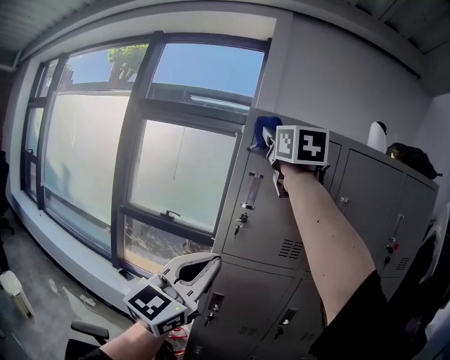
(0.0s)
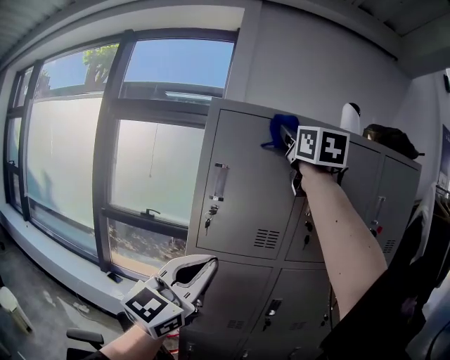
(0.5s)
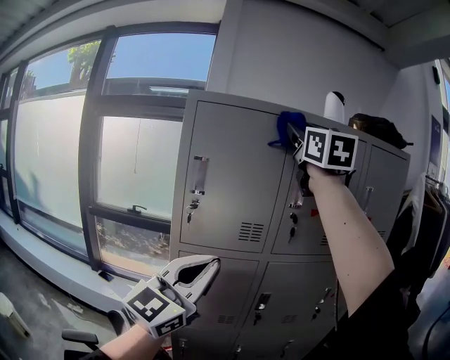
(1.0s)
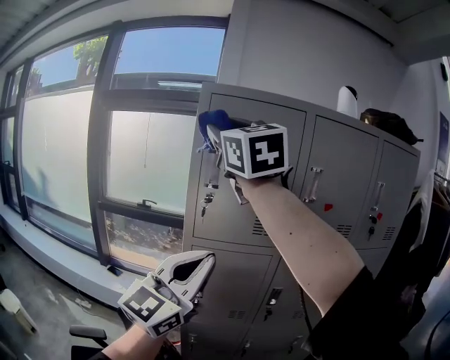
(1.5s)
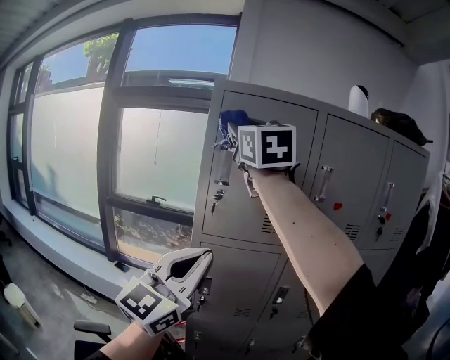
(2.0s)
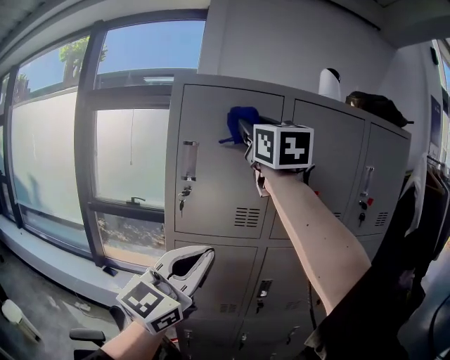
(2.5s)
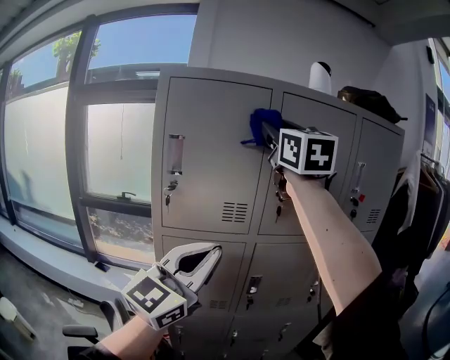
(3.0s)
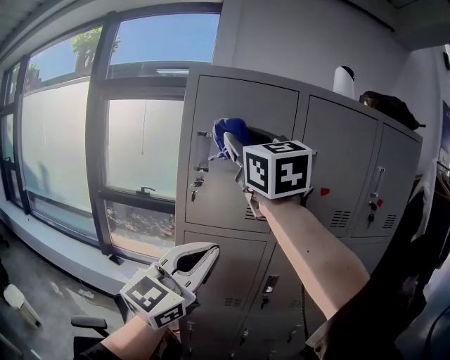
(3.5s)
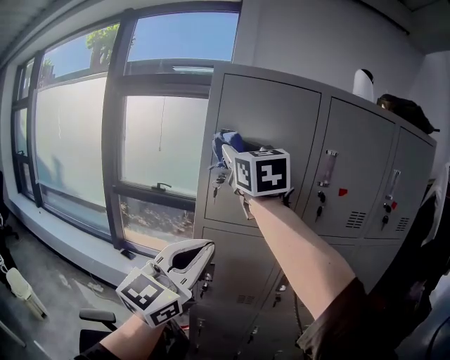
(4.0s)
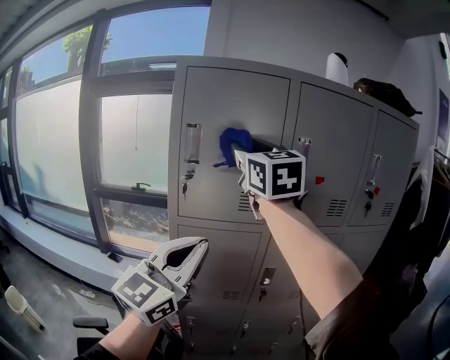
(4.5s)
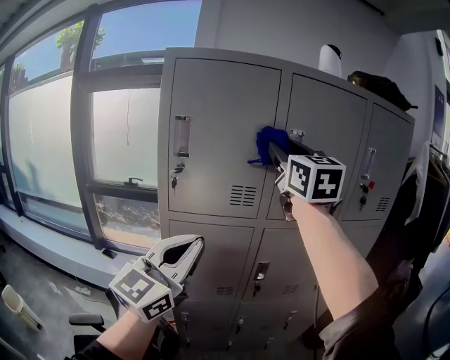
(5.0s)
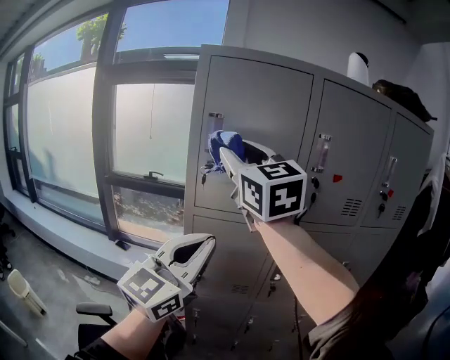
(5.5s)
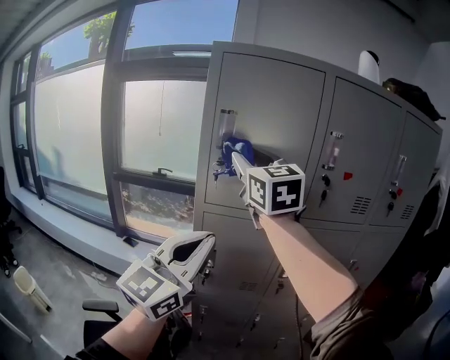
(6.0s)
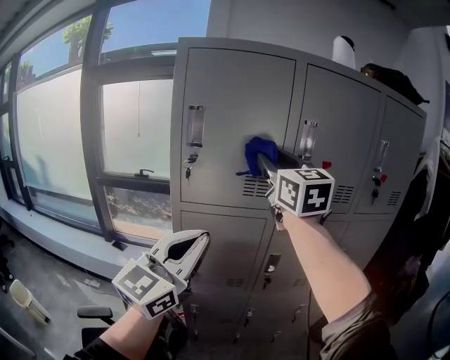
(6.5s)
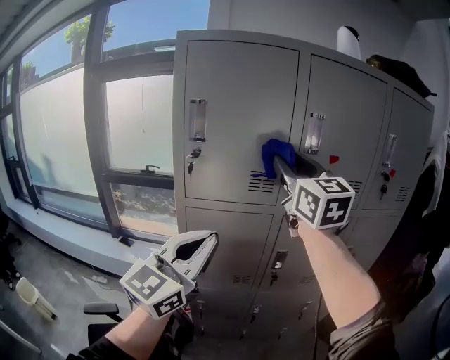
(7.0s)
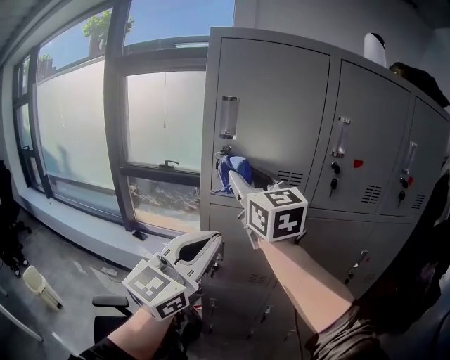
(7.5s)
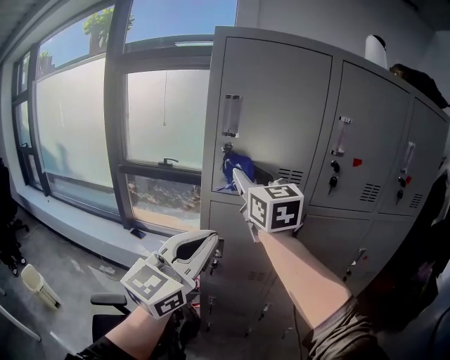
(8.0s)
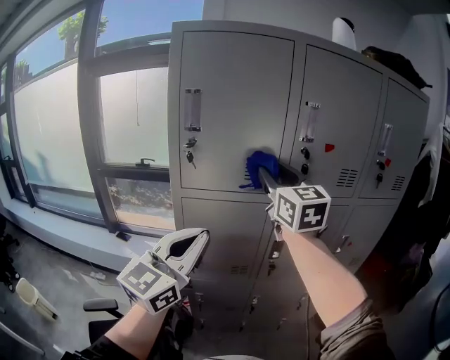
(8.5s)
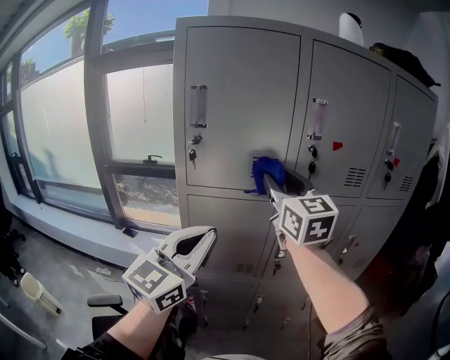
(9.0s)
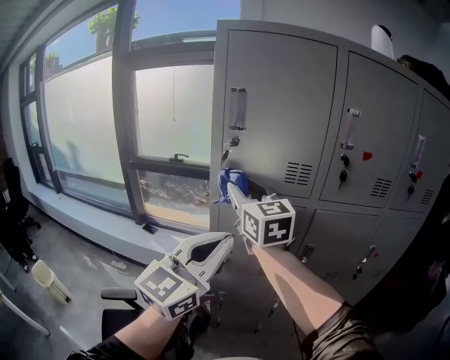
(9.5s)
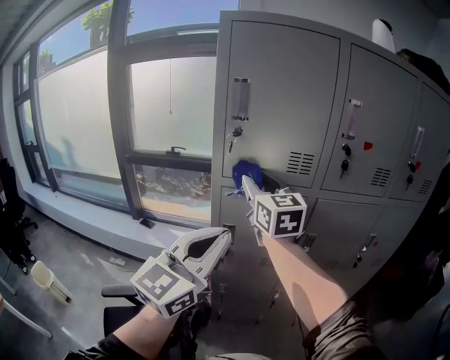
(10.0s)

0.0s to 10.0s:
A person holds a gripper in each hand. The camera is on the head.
0.0s to 2.0s: The right gripper shifts roughly 5 cm downward, and goes to the right and returns, some 20 cm each way.
2.0s to 4.0s: The left gripper goes to the right and returns, some 10 cm each way; the right gripper shifts approximately 10 cm downward, and reaches approximately 20 cm to the right, then returns.
4.0s to 6.0s: The right gripper travels downward by about 5 cm, and travels to the right and back again, about 20 cm each way.
6.0s to 8.0s: The right gripper shifts about 10 cm downward, and travels to the right and back again, roughly 15 cm each way.
8.0s to 10.0s: The right gripper travels downward by roughly 5 cm, and moves roughly 15 cm to the right and comes back.

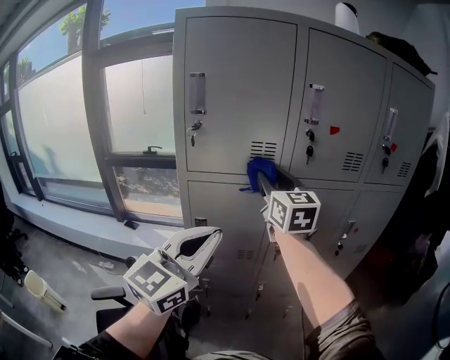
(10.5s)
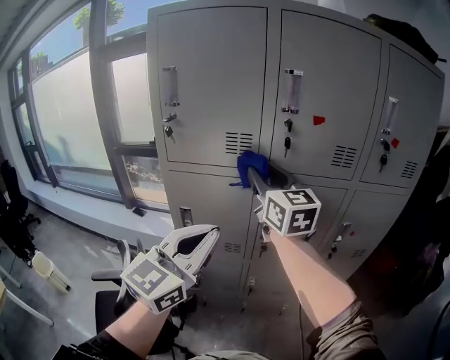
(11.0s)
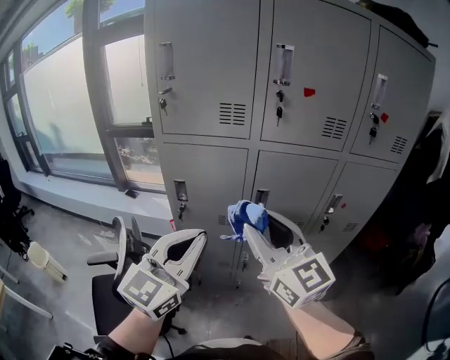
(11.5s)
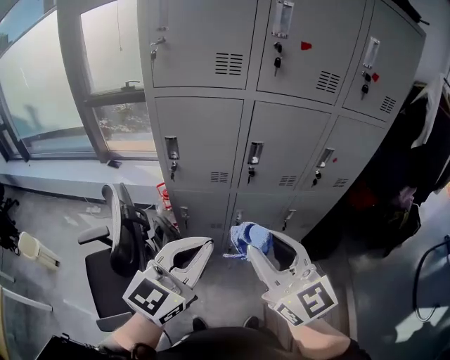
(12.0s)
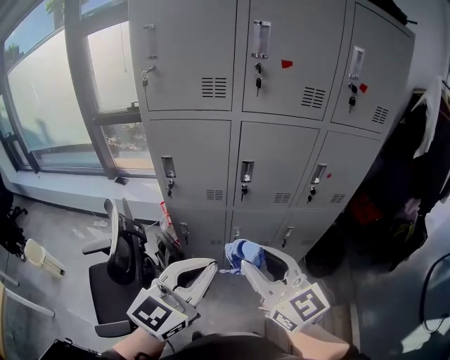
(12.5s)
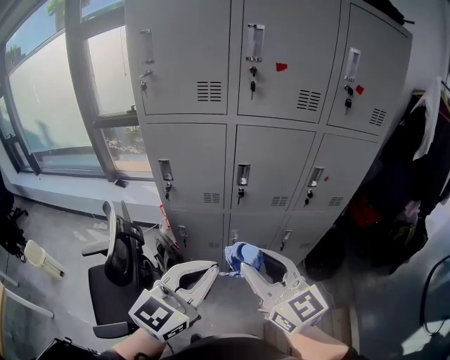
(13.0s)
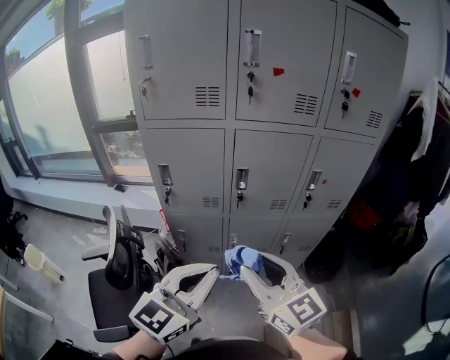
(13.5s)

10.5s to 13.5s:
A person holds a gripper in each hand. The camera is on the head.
10.5s to 12.0s: The left gripper is displaced backward, downward and to the right by approximately 20 cm. Meanwhile the right gripper is displaced backward and downward by roughly 35 cm.
12.0s to 13.5s: The grippers both shift to the right by approximately 5 cm.

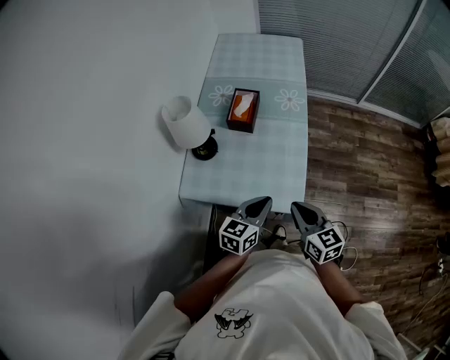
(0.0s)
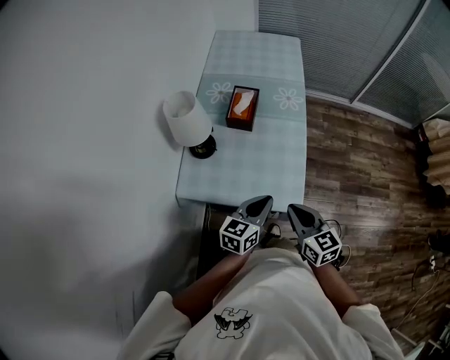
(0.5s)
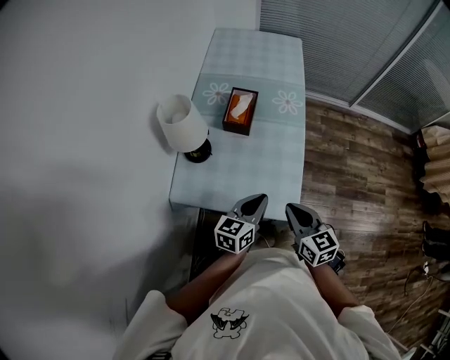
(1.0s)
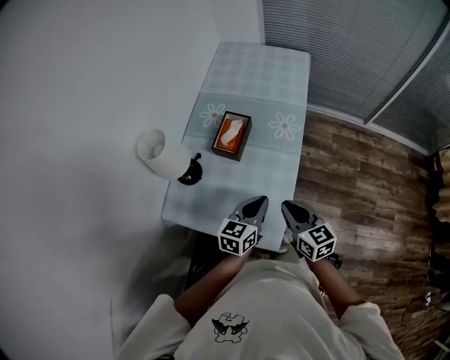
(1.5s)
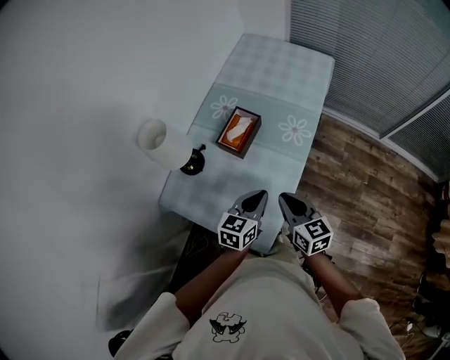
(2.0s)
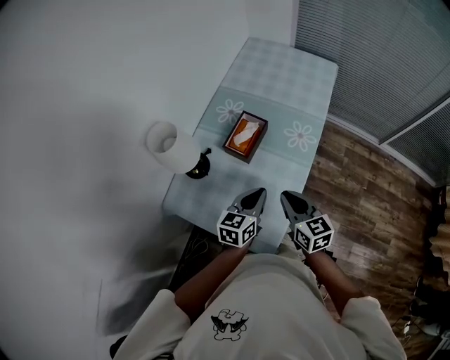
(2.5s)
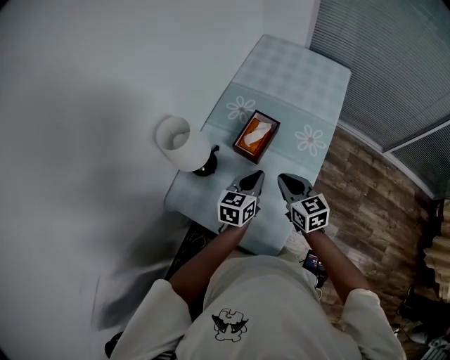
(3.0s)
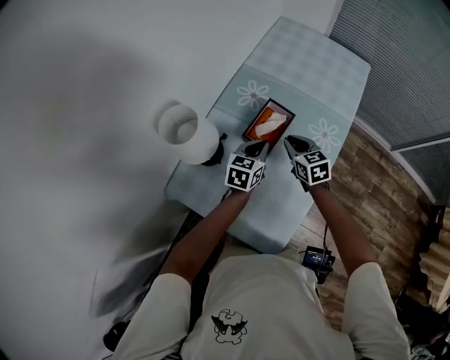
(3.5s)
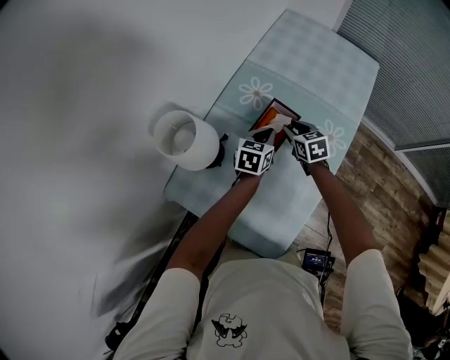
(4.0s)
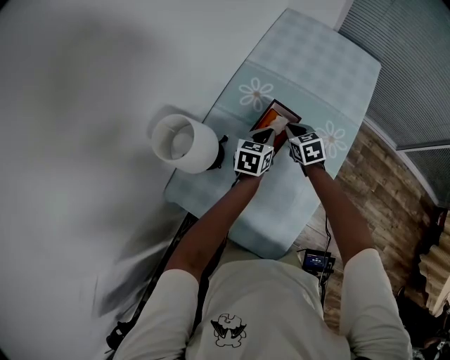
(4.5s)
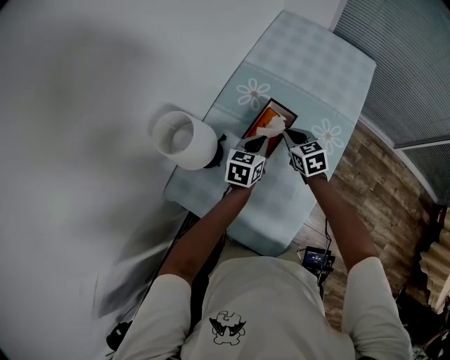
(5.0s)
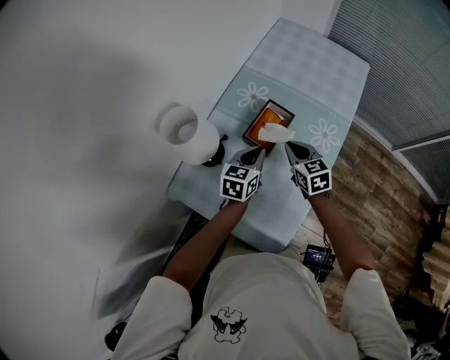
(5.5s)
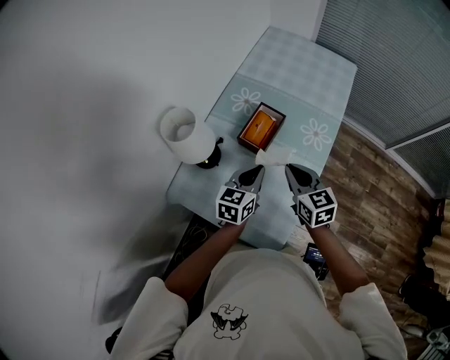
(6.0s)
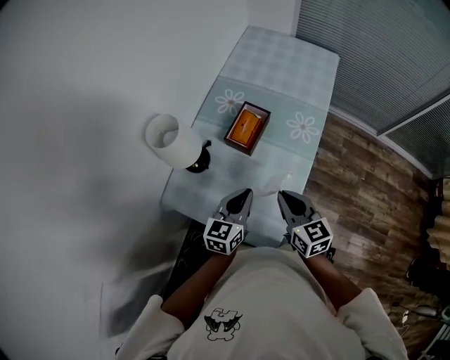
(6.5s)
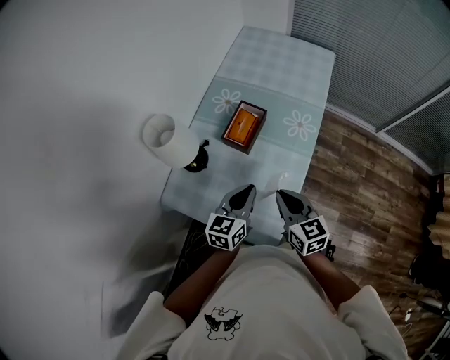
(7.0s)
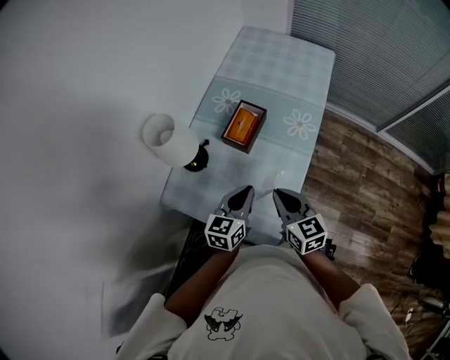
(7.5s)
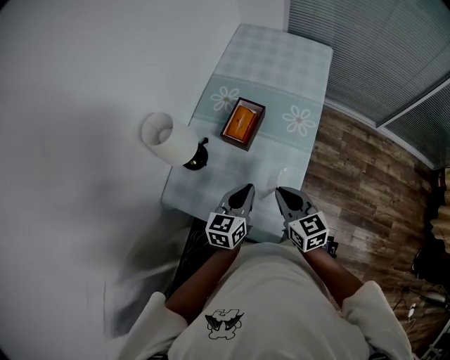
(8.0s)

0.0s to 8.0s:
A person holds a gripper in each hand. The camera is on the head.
0.0s to 2.0s: The right gripper goes approximately 20 cm forward; the left gripper goes approximately 20 cm forward and to the right.
2.0s to 4.0s: The two grippers go about 30 cm forward and downward. The right gripper rotates about 20 degrees, and opens its fingers.
4.0s to 6.0s: The two grippers go about 25 cm backward and upward. The right gripper closes.
6.0s to 8.0s: Both grippers travel together backward, some 10 cm.

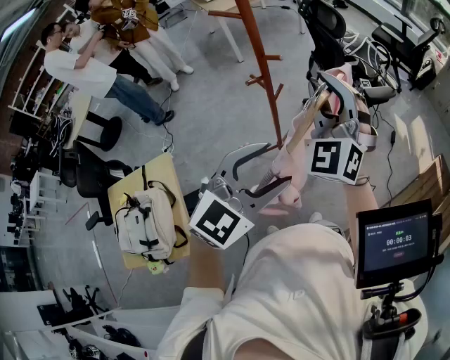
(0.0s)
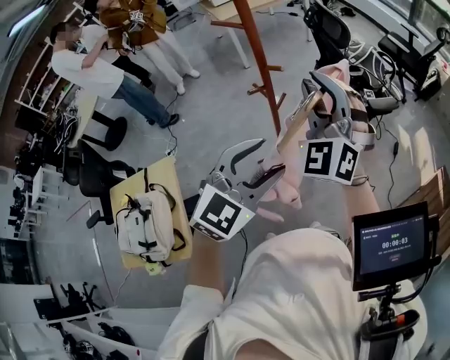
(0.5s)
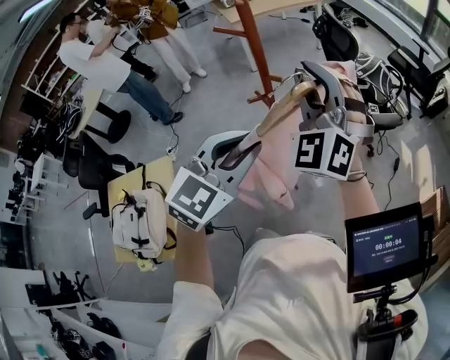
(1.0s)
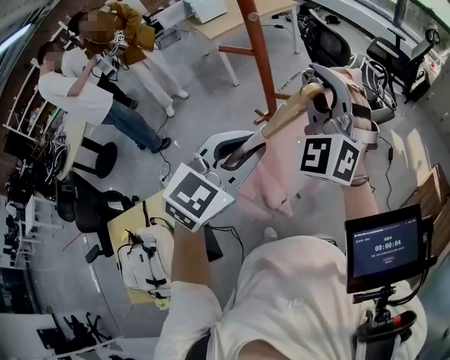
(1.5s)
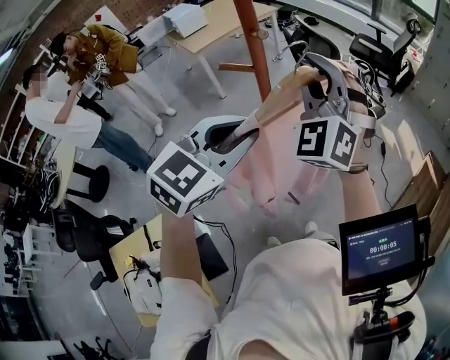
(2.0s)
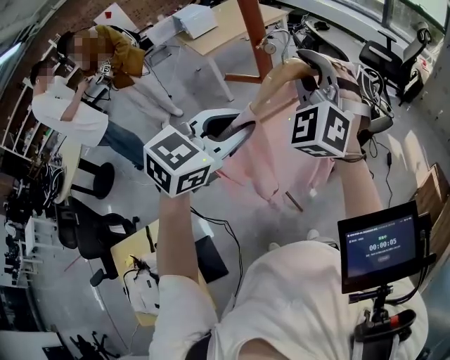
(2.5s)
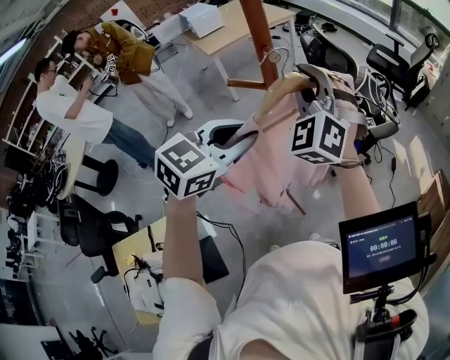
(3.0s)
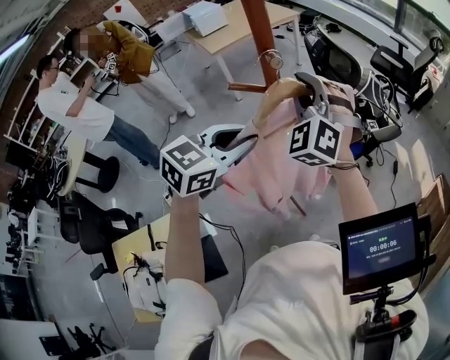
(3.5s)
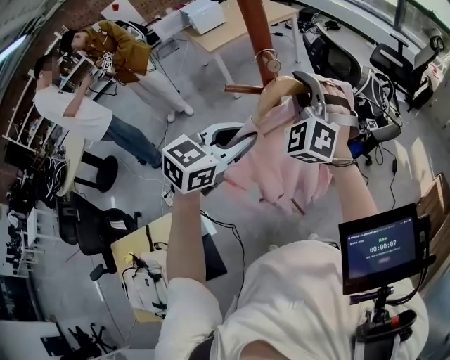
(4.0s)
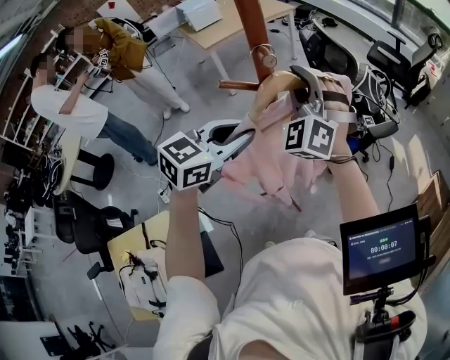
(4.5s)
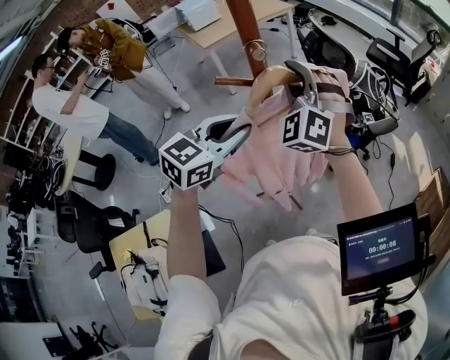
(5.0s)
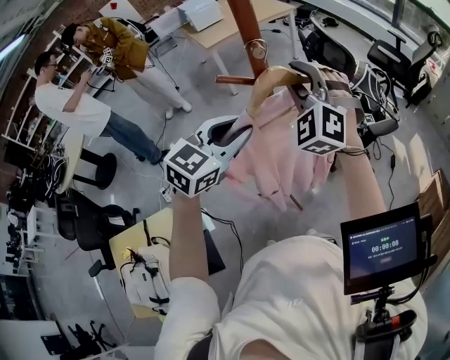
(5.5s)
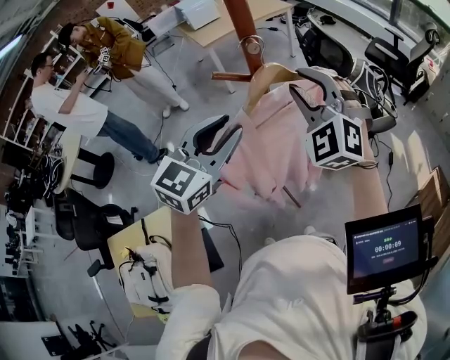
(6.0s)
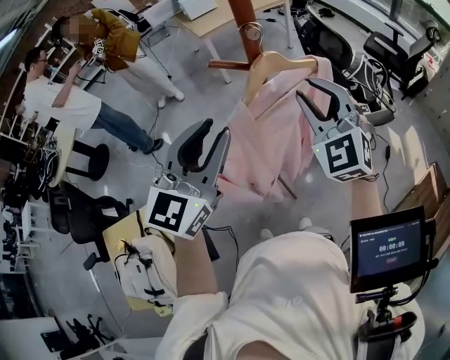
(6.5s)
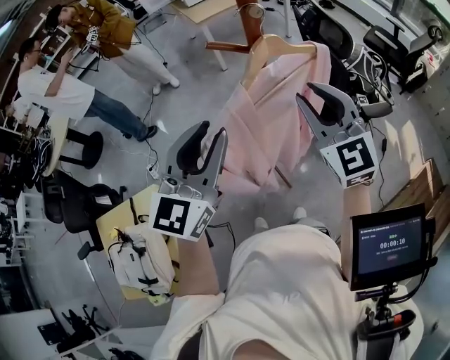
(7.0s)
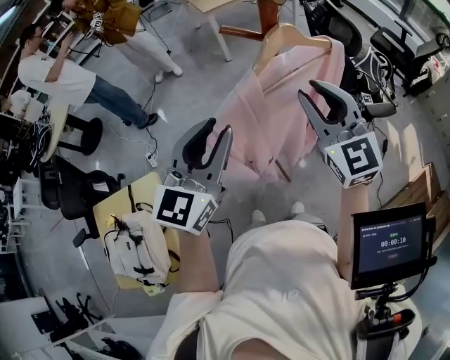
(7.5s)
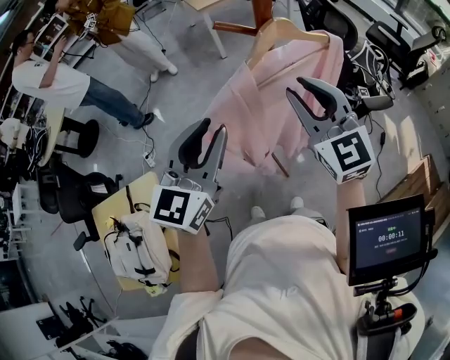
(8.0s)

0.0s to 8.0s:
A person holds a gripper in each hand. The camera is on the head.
0.0s to 2.0s: Both grippers travel together forward, to the left and upward, roughly 20 cm. The left gripper closes its fingers.
2.0s to 4.0s: The left gripper travels downward and forward by some 10 cm. The right gripper heads downward, forward and to the left, covering roughly 15 cm.
4.0s to 6.0s: The grippers make only small movements.
6.0s to 8.0s: Both grippers move backward, approximately 5 cm. The left gripper swivels roughly 20 degrees; the right gripper rotates roughly 40 degrees.
